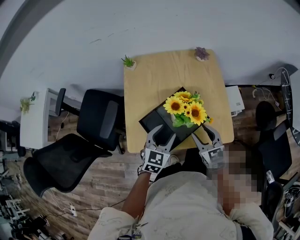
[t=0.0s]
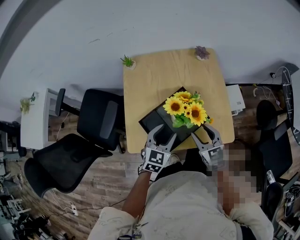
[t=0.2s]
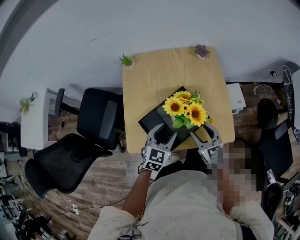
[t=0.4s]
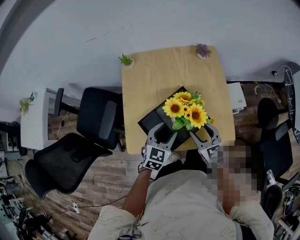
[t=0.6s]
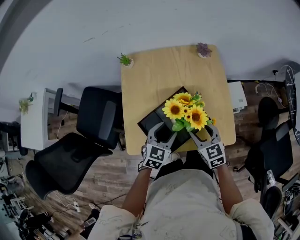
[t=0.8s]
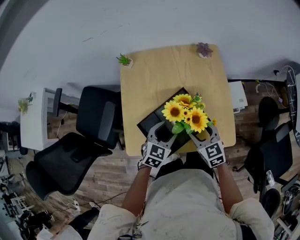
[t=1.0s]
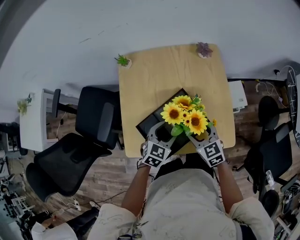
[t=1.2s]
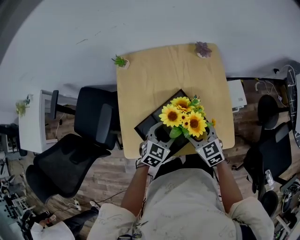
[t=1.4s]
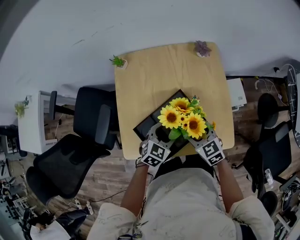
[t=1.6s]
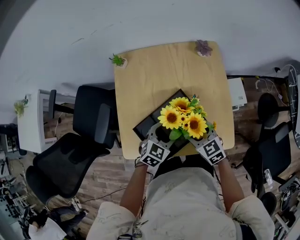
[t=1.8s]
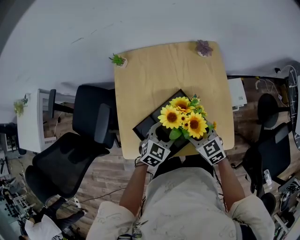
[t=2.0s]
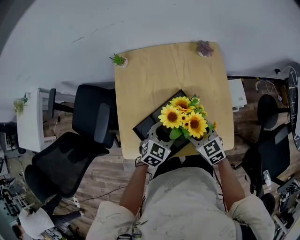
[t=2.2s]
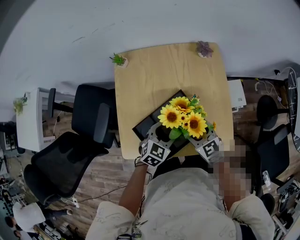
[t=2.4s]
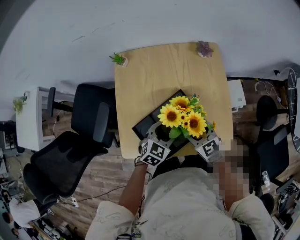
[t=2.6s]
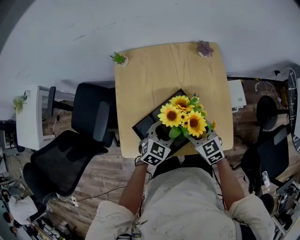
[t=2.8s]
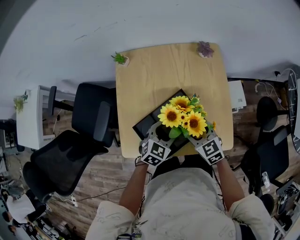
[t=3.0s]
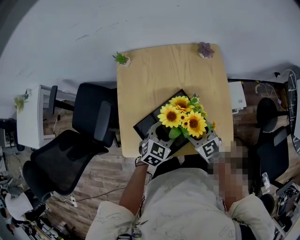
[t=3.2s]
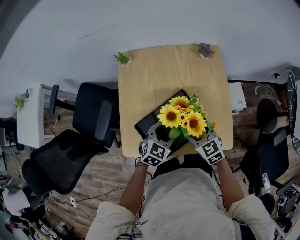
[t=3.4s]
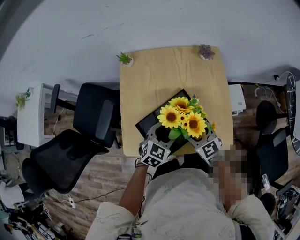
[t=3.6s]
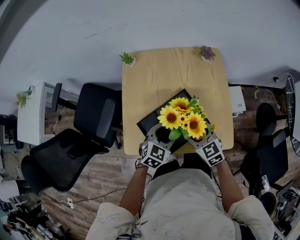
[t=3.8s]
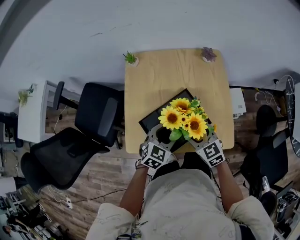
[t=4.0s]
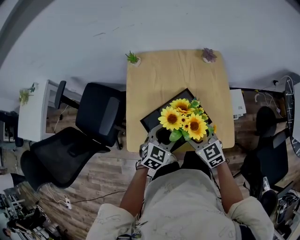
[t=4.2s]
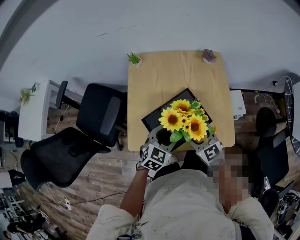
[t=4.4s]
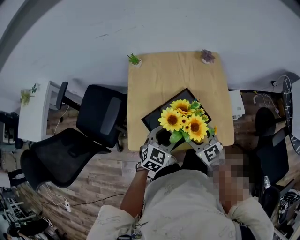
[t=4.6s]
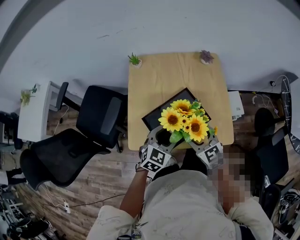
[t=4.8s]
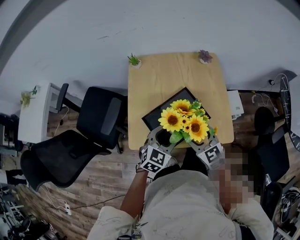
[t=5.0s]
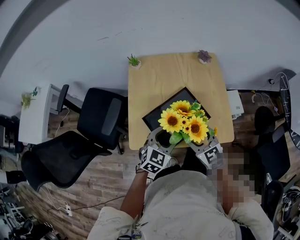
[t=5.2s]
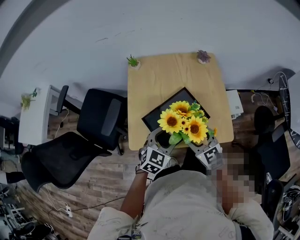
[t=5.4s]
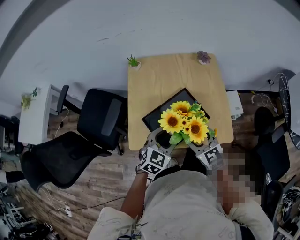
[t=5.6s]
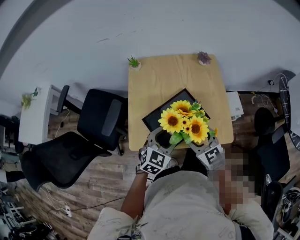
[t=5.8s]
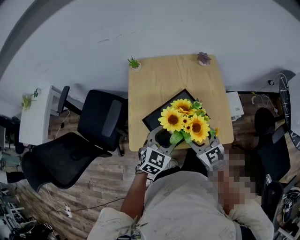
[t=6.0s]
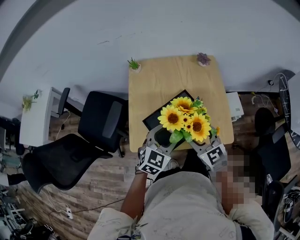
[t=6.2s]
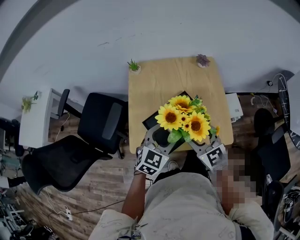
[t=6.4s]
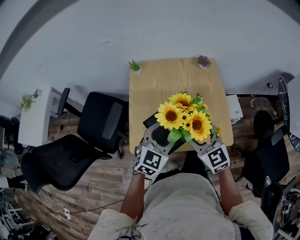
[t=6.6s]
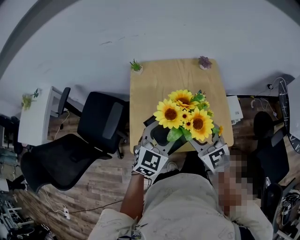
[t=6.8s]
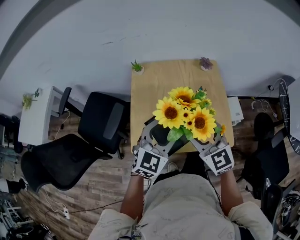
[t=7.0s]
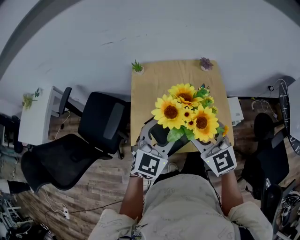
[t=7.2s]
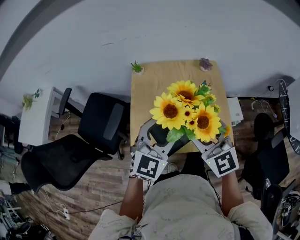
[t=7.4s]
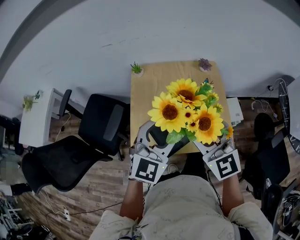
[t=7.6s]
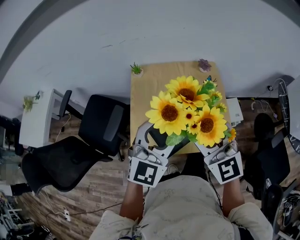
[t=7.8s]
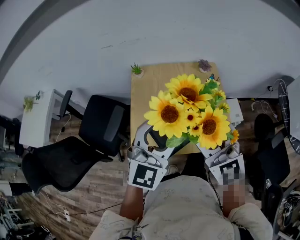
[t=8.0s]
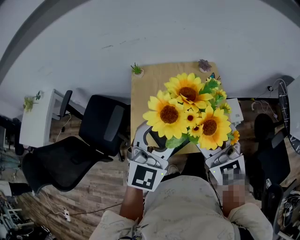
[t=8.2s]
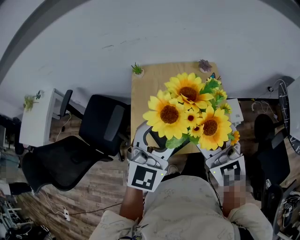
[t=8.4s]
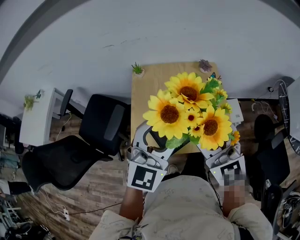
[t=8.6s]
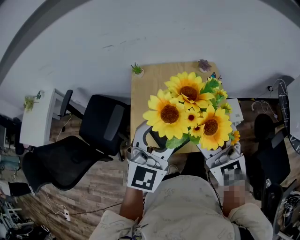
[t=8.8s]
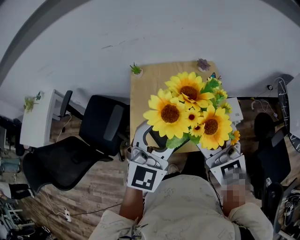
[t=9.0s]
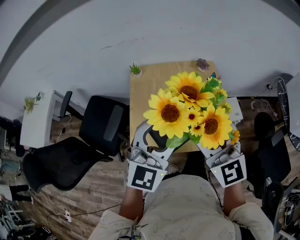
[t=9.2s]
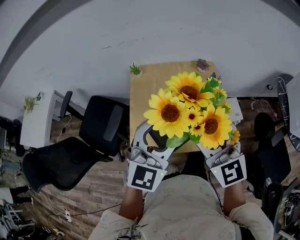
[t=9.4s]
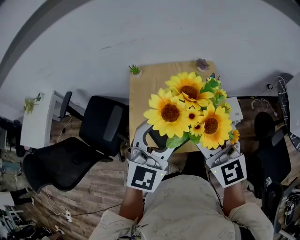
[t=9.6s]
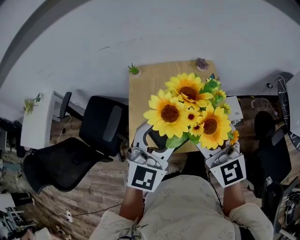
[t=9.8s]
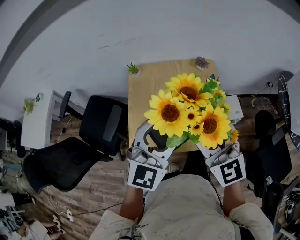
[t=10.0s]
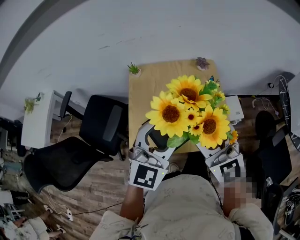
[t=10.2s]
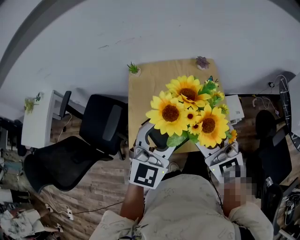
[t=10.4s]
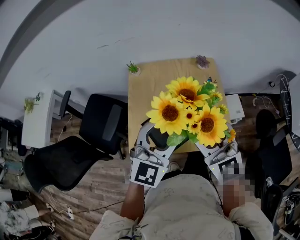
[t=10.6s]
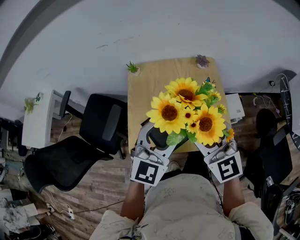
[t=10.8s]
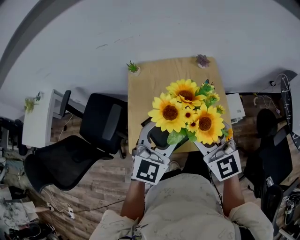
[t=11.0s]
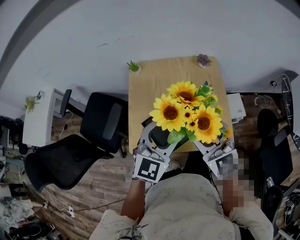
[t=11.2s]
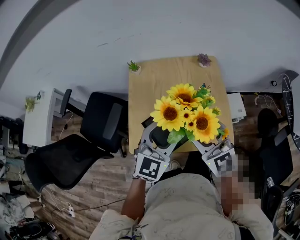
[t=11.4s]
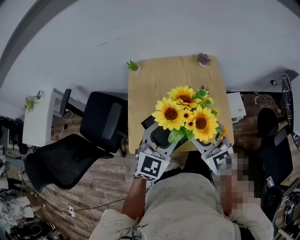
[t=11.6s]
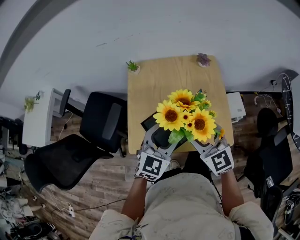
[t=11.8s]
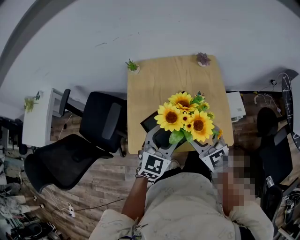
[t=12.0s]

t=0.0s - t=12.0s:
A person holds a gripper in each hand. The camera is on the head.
t=0.0s - t=1.6s: The right gripper goes some 5 cm forward. The left gripper heads downward and forward, covering about 10 cm.
t=1.6s - t=3.0s: Both grippers stay about where they are.
t=3.0s - t=4.4s: The two grippers go about 10 cm backward and upward.
t=4.4s - t=6.0s: The right gripper changes place by about 5 cm. Meanwhile the left gripper shifts approximately 5 cm upward.
t=6.0s - t=7.6s: Both grippers move upward, some 15 cm. The left gripper turns by about 20 degrees; the right gripper changes its angle by some 20 degrees.
t=7.6s - t=9.0s: There are only small adjustments of the grippers.
t=9.0s - t=10.4s: Neither gripper changes place.
t=10.4s - t=12.0s: The grippers both shift downward by roughly 15 cm.

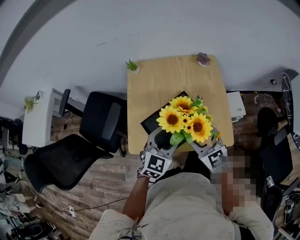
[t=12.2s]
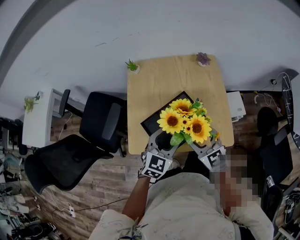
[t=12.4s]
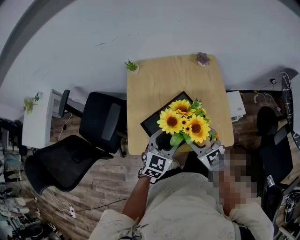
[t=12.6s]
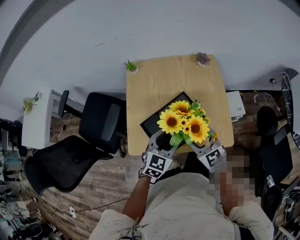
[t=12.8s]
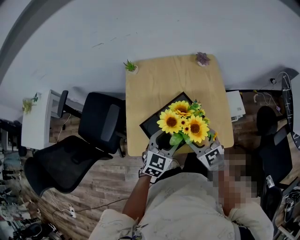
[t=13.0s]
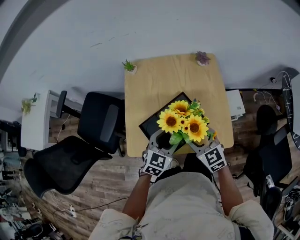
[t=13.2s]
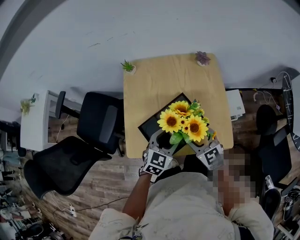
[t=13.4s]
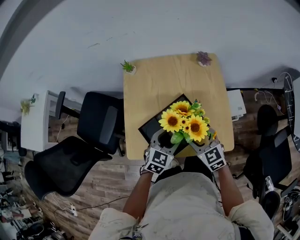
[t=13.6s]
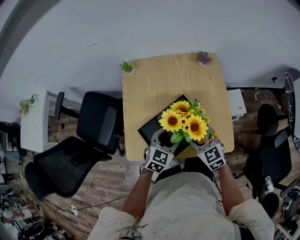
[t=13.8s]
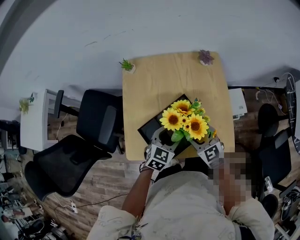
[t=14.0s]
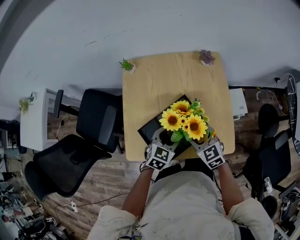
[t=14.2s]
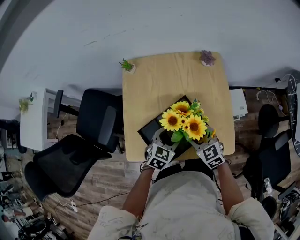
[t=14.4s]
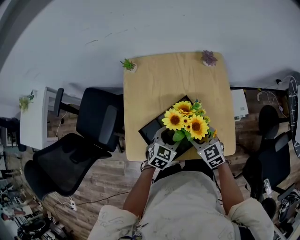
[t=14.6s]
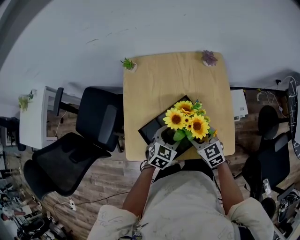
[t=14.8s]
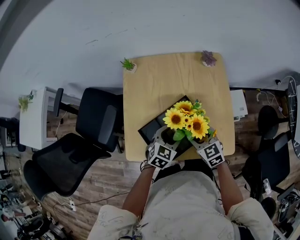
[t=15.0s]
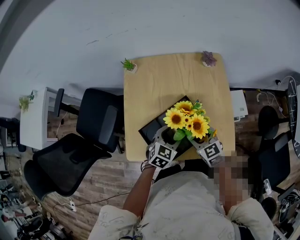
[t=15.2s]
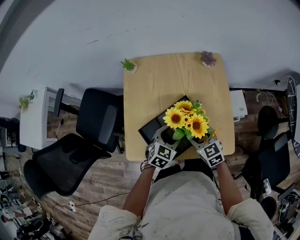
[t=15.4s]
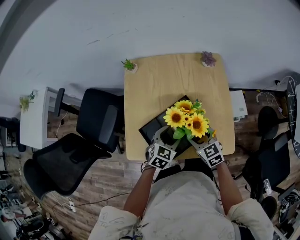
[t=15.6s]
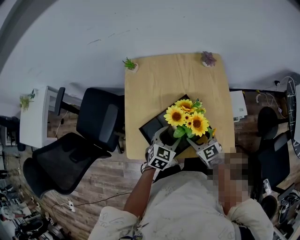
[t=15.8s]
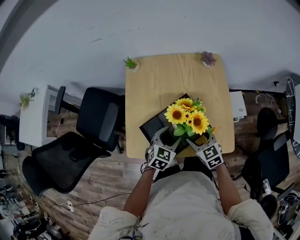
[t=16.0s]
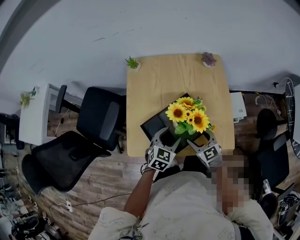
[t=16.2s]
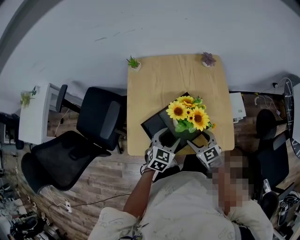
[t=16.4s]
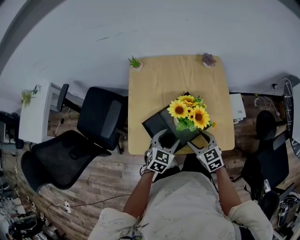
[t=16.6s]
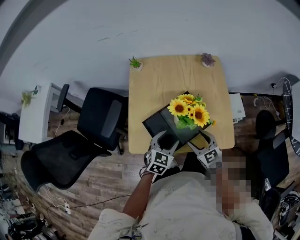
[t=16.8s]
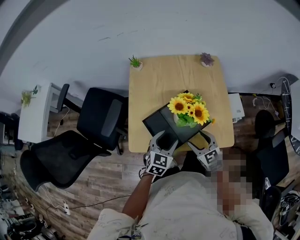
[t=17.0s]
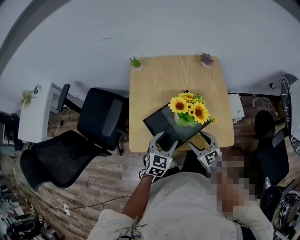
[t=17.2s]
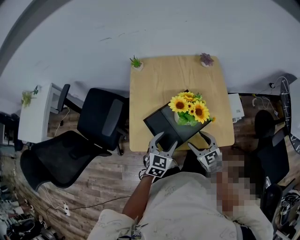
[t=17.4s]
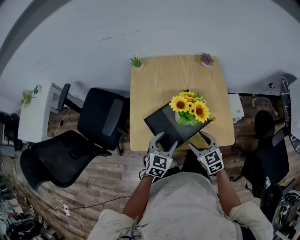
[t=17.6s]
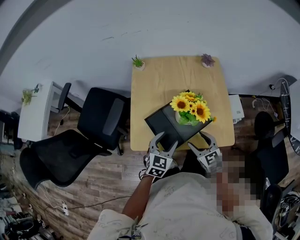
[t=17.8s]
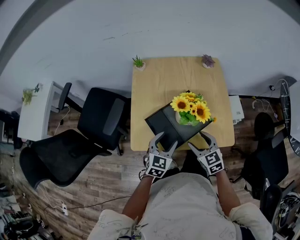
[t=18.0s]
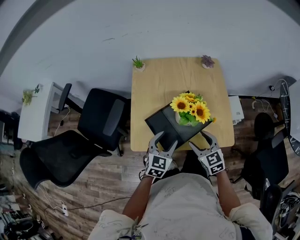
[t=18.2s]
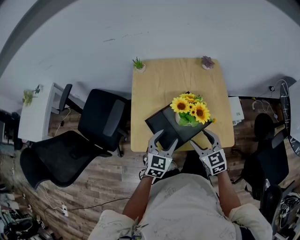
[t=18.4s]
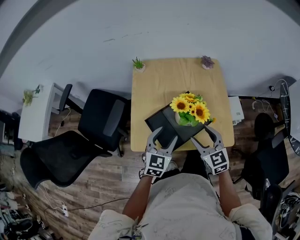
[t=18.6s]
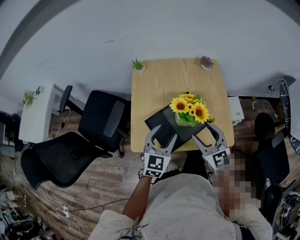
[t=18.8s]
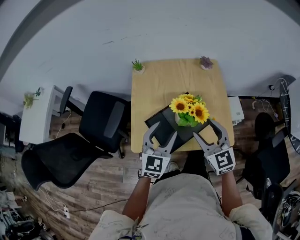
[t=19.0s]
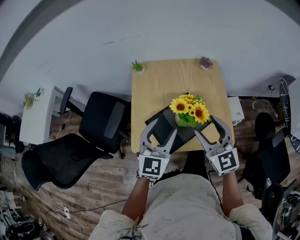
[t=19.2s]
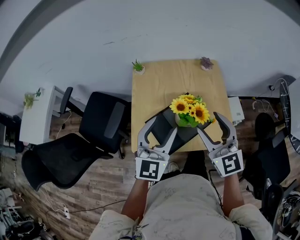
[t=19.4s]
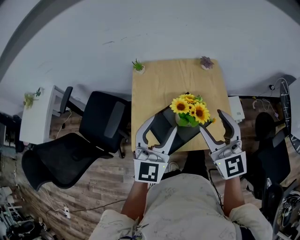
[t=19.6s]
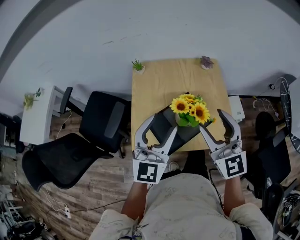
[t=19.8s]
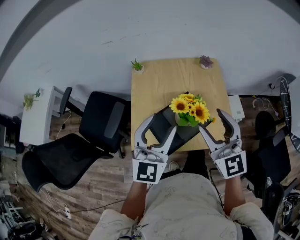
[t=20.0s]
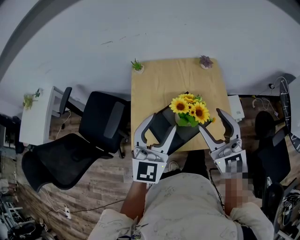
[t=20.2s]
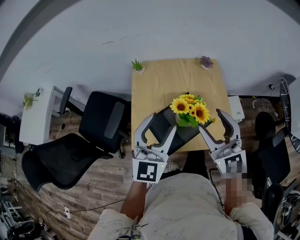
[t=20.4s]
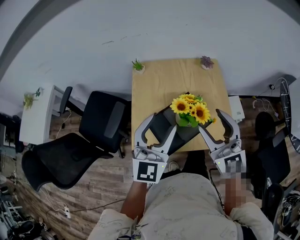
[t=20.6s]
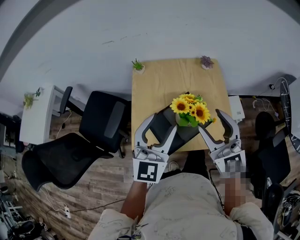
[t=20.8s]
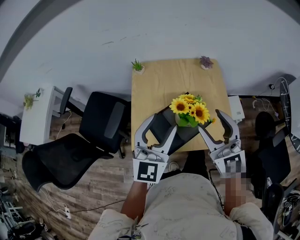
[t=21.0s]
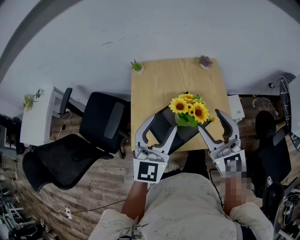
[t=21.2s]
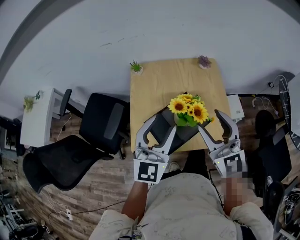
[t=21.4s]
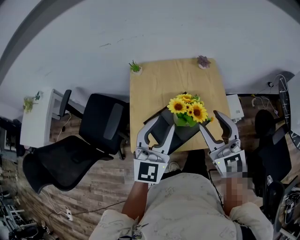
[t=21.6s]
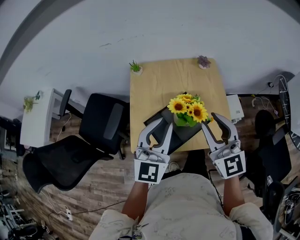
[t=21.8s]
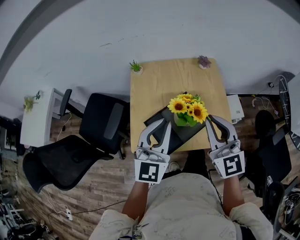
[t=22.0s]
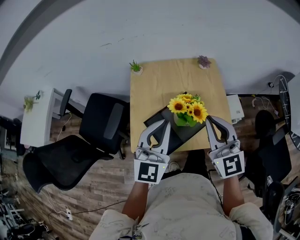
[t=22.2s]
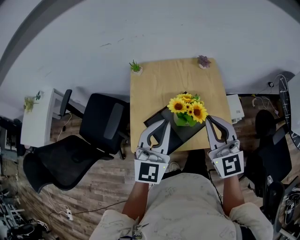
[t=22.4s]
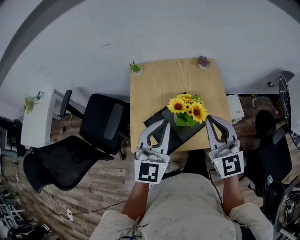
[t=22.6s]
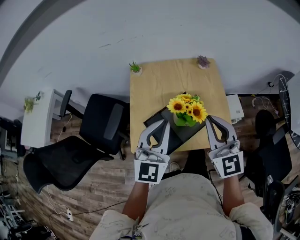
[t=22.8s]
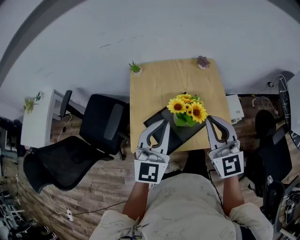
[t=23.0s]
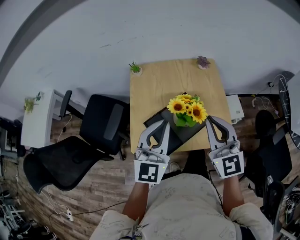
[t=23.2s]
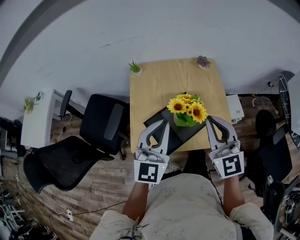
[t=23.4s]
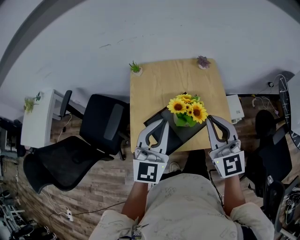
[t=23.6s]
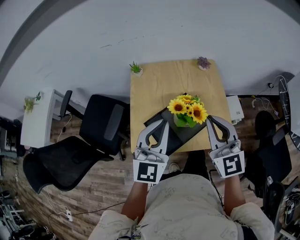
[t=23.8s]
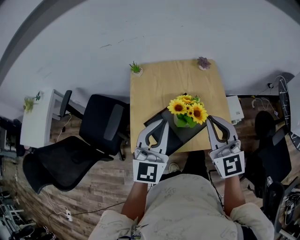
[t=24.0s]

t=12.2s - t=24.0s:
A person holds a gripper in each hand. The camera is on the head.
t=12.2s - t=13.6s: Both grippers move downward, about 10 cm.
t=13.6s - t=15.2s: The left gripper moves roughly 5 cm; the right gripper is displaced downward by roughly 5 cm.
t=15.2s - t=16.6s: Both grippers travel together backward, roughly 5 cm.
t=16.6s - t=18.2s: The left gripper moves some 5 cm.
t=18.2s - t=19.6s: Both grippers move upward, about 25 cm. The left gripper rotates about 30 degrees. Meanwhile the right gripper tips its fingers upward by about 30 degrees.
t=19.6s - t=21.0s: Neither gripper changes place.
t=21.0s - t=22.6s: The left gripper closes; the right gripper closes its fingers.
t=22.6s - t=24.0s: Neither gripper changes place.
